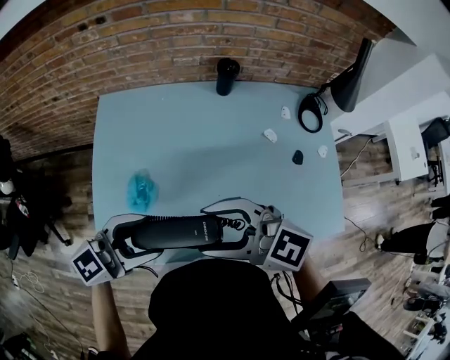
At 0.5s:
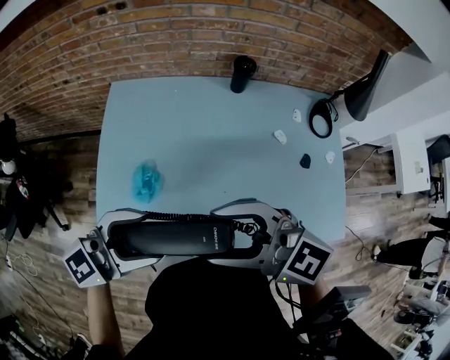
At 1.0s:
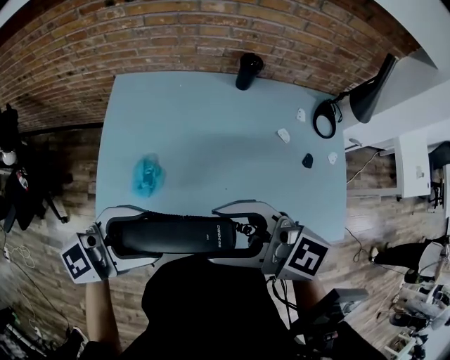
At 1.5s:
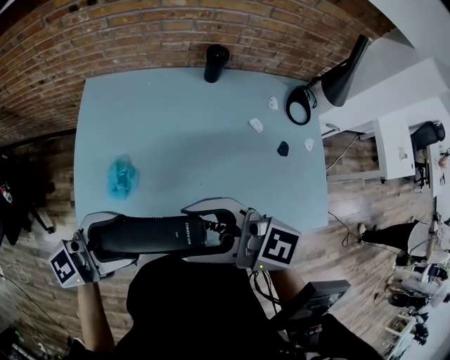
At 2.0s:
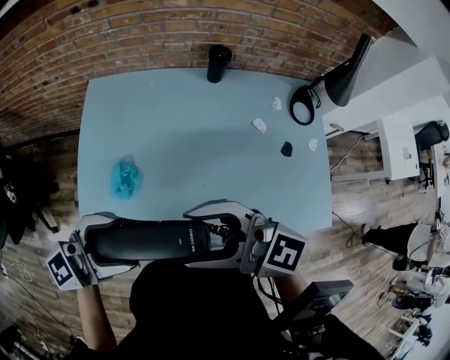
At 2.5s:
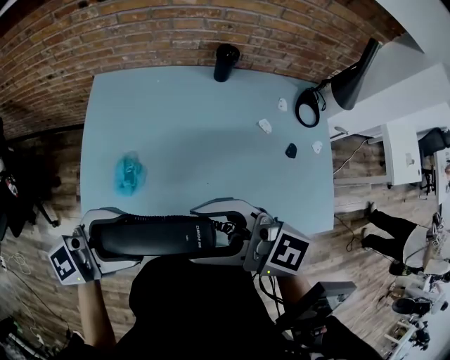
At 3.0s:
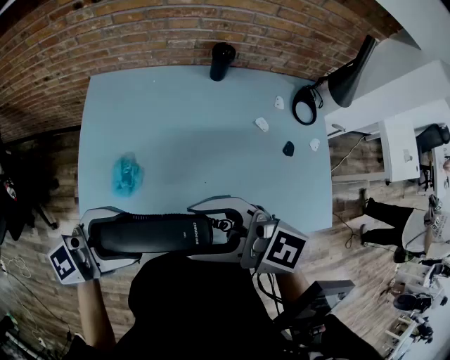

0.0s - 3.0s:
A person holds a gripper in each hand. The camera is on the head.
0.0s - 1.5s: The left gripper heads upward, covering approximately 5 cm.
1.5s - 3.0s: The grippers make only small movements.

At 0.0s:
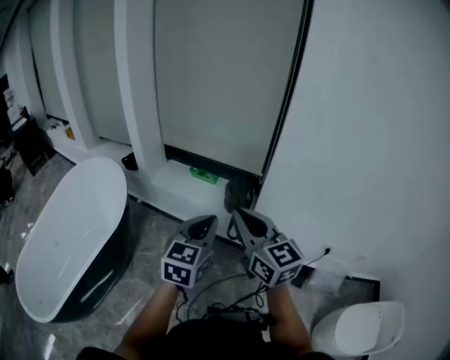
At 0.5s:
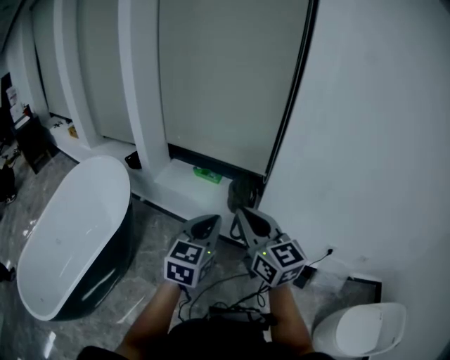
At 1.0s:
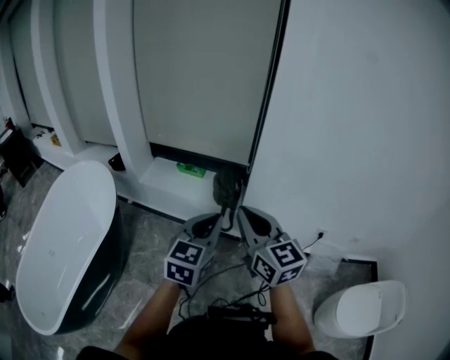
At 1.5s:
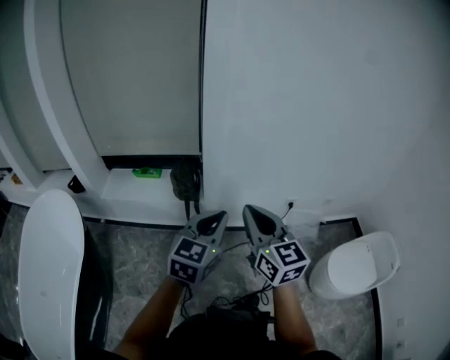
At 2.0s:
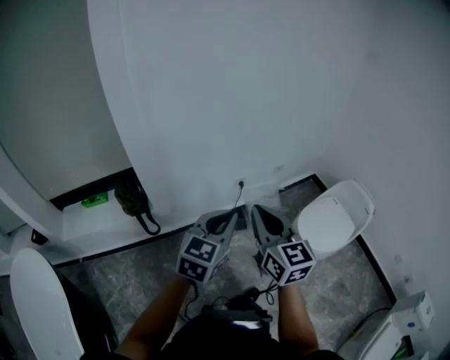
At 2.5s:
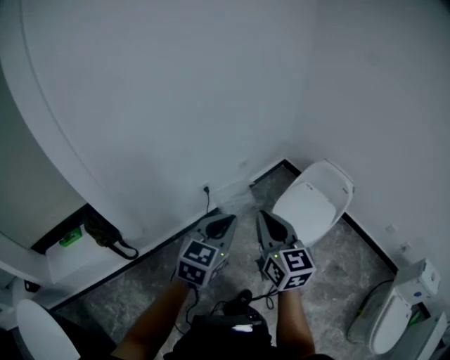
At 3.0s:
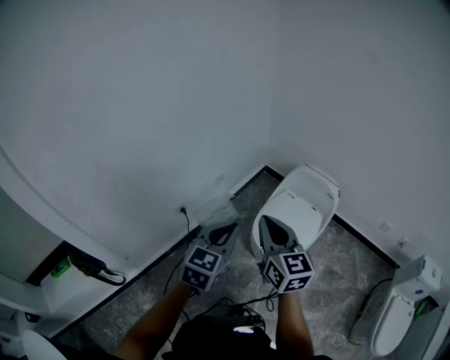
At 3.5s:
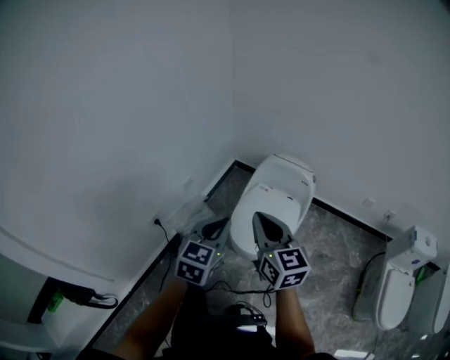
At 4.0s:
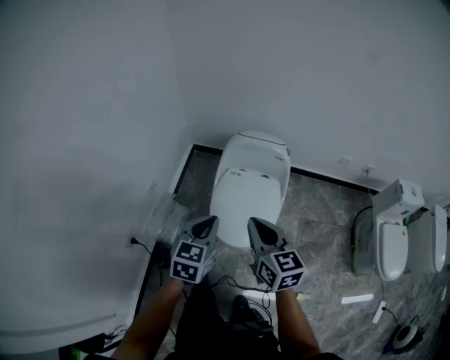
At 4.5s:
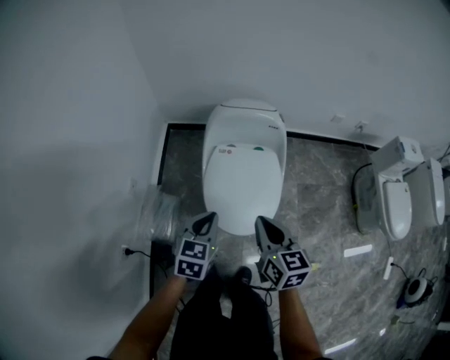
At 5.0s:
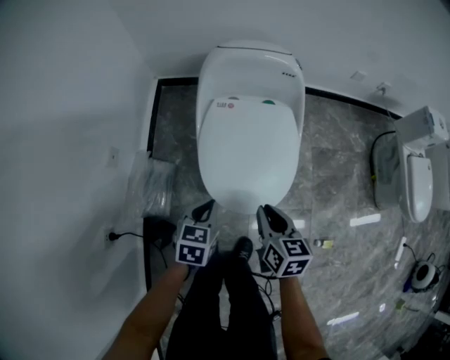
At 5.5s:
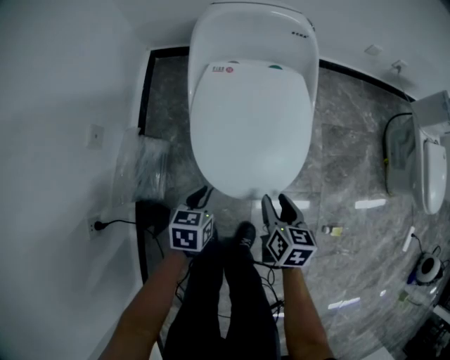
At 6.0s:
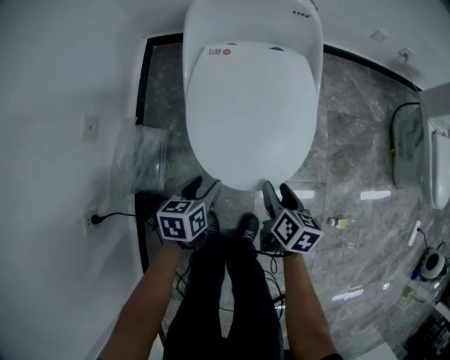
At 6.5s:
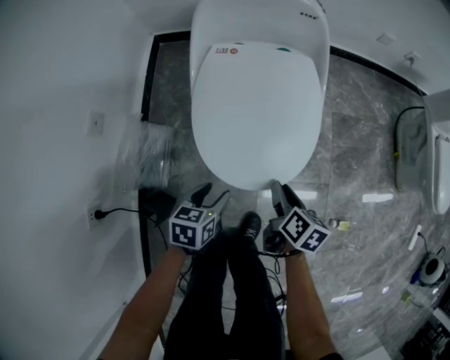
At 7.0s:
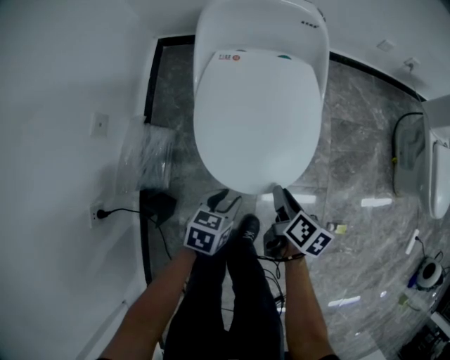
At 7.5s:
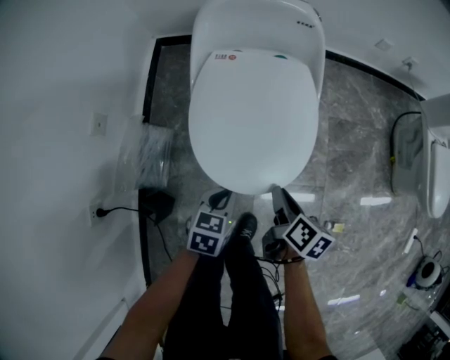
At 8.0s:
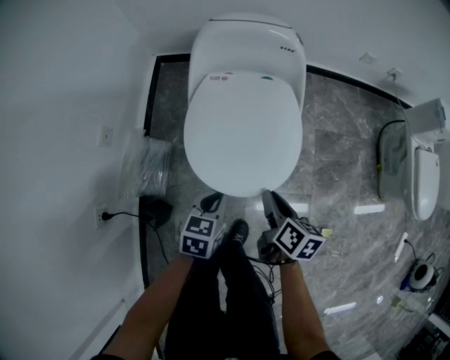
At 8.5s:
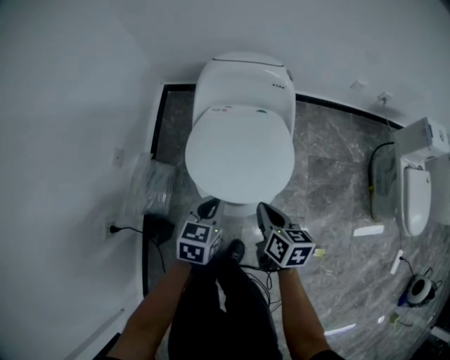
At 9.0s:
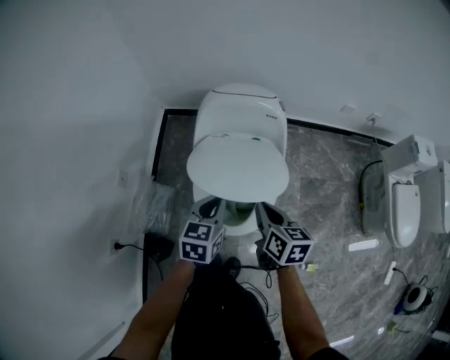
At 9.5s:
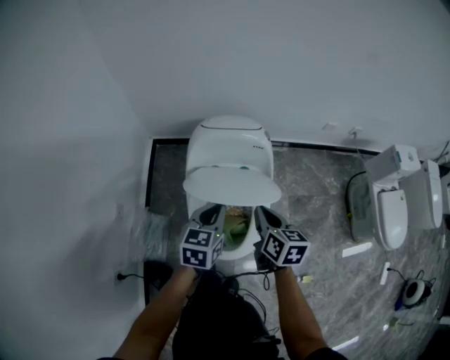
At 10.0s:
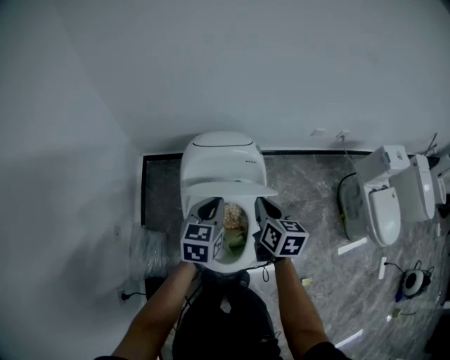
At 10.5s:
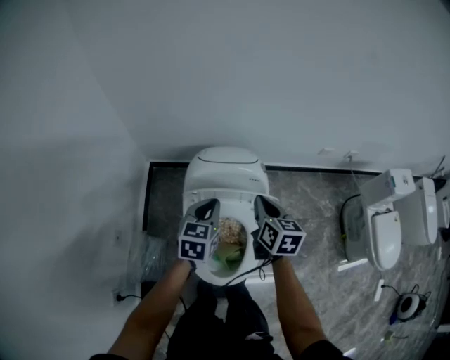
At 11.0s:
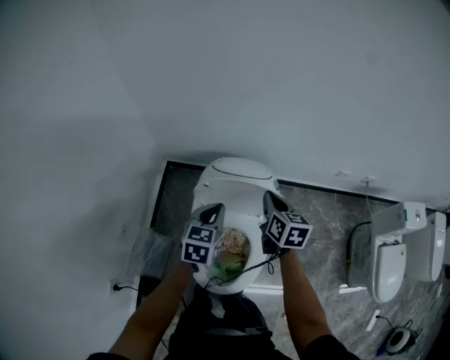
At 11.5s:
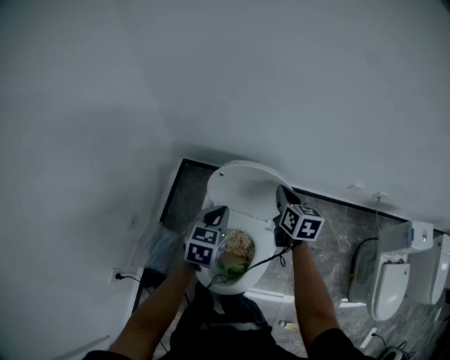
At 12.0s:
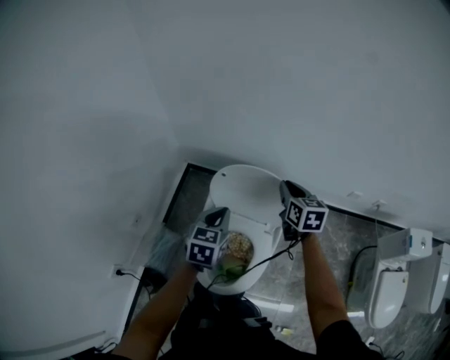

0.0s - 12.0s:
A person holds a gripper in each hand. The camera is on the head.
0.0s - 2.0s: The right gripper moves approximately 35 cm, and swivels approximately 50 degrees. Meanwhile the left gripper shifts by roughly 35 cm, and swivels about 50 degrees.
2.0s - 4.0s: Both grippers are carried approximately 40 cm. The left gripper swivels some 50 degrees; the right gripper changes its angle by roughly 50 degrees.
4.0s - 6.0s: The two grippers go roughly 40 cm downward. The right gripper rotates approximately 50 degrees, and opens its fingers. Meanwhile the left gripper changes its angle by approximately 40 degrees, and opens its fingers.
6.0s - 8.0s: The right gripper goes some 10 cm upward, and closes; the left gripper shifts about 15 cm upward and to the right, and closes up.
8.0s - 10.0s: The two grippers go about 30 cm forward and upward. The right gripper rotates approximately 30 degrees.
10.0s - 12.0s: The right gripper travels forward by approximately 20 cm, and swivels roughly 20 degrees. Meanwhile the left gripper ends up roughly 5 cm from where it was, and rotates some 20 degrees.

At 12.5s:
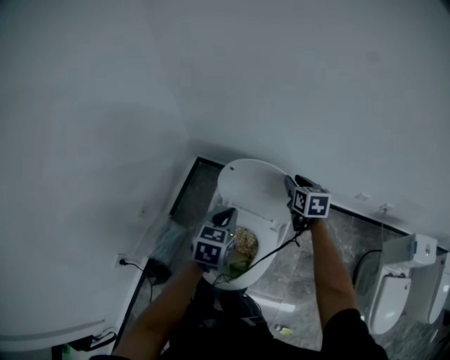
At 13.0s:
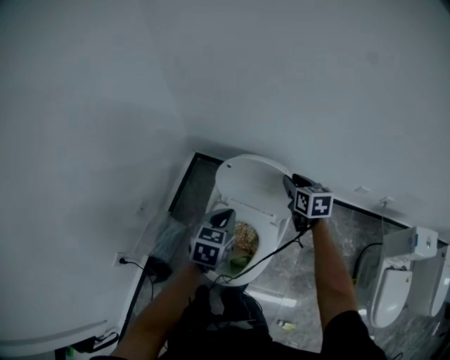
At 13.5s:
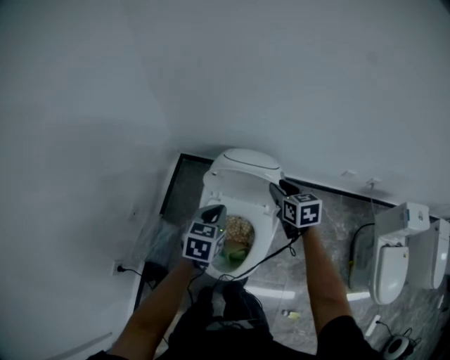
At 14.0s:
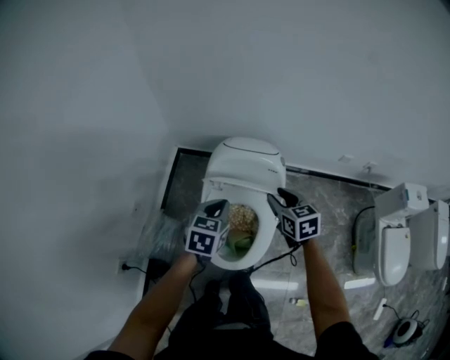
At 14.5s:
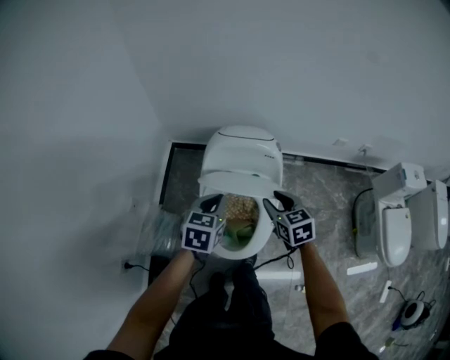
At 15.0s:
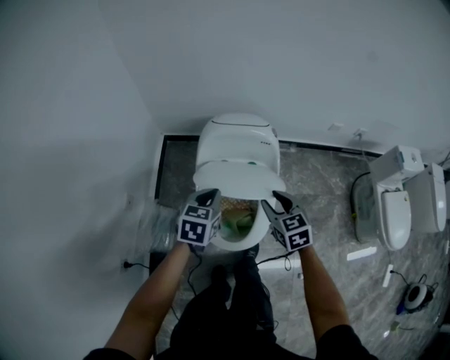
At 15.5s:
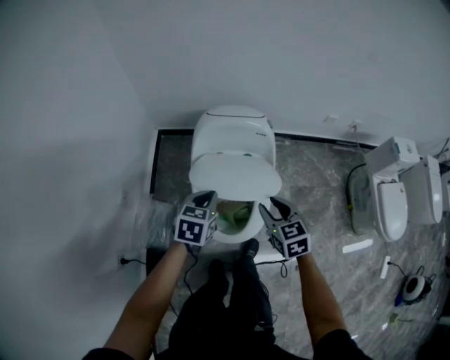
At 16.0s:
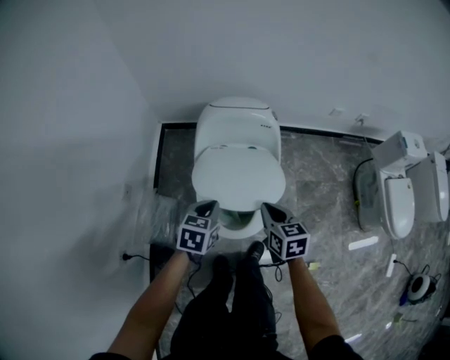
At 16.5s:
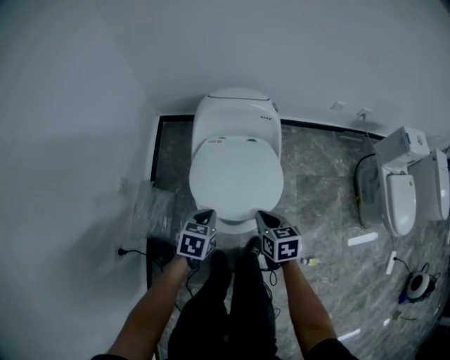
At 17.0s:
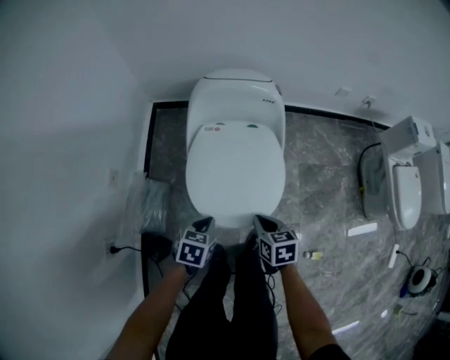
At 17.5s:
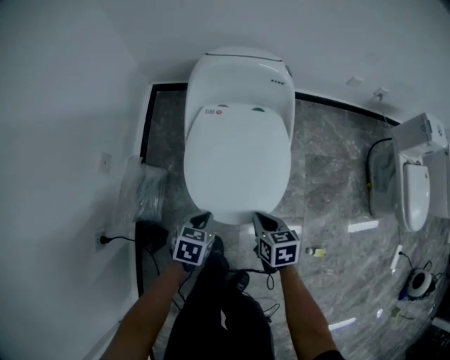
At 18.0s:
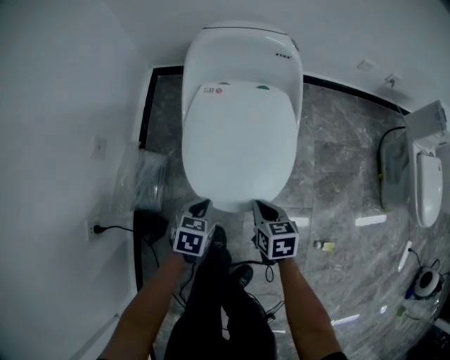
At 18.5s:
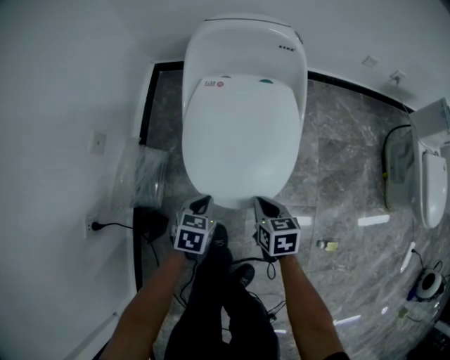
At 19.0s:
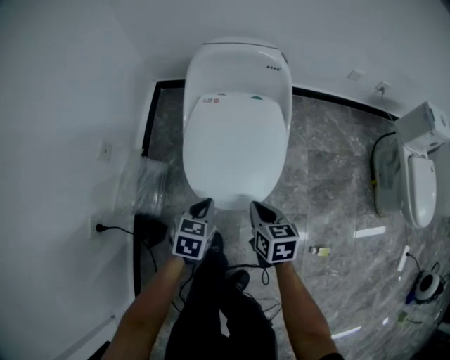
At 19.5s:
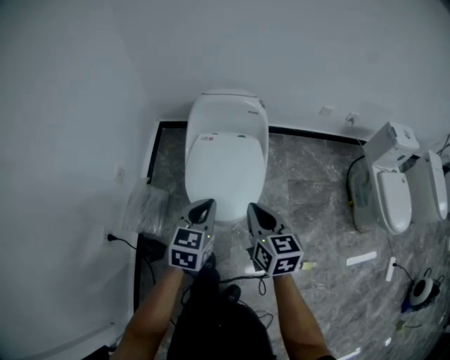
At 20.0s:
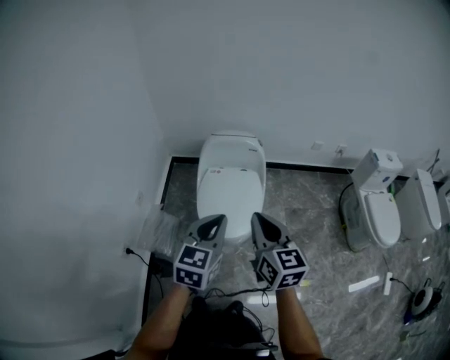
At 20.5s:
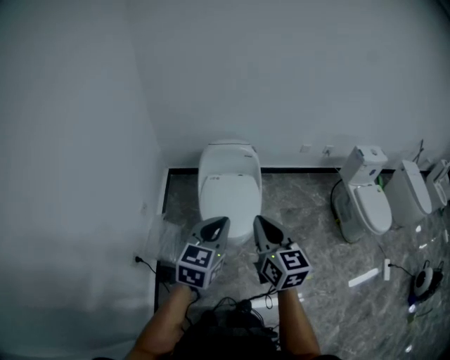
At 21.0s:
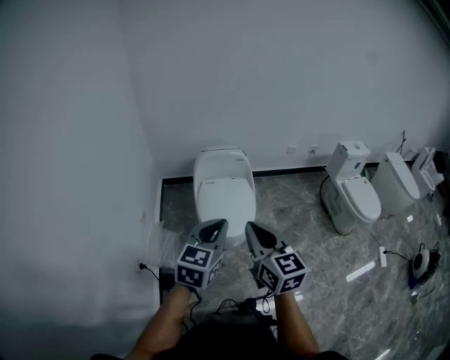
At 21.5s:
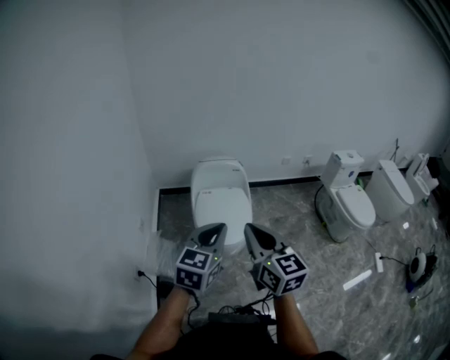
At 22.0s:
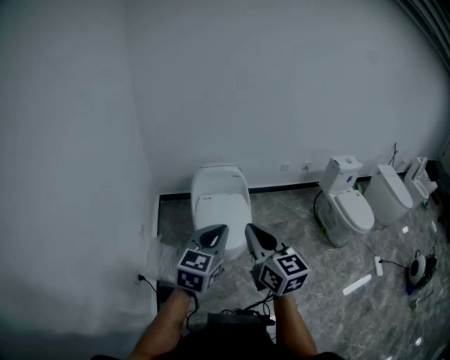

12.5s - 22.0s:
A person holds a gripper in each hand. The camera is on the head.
12.5s - 14.5s: The right gripper shifts about 25 cm backward. The left gripper moves backward, approximately 10 cm.
14.5s - 16.5s: The right gripper goes some 20 cm backward and downward, changes its angle by roughly 20 degrees, and closes. The left gripper is displaced downward and backward by about 20 cm.
16.5s - 18.0s: Both grippers move downward, approximately 15 cm.
18.0s - 20.0s: Both grippers travel together upward, approximately 40 cm. The left gripper angles its fingers upward, by some 40 degrees; the right gripper tilts its fingers roughly 40 degrees upward.
20.0s - 22.0s: The left gripper is displaced backward and upward by some 15 cm. The right gripper travels backward, upward and to the left by roughly 20 cm.

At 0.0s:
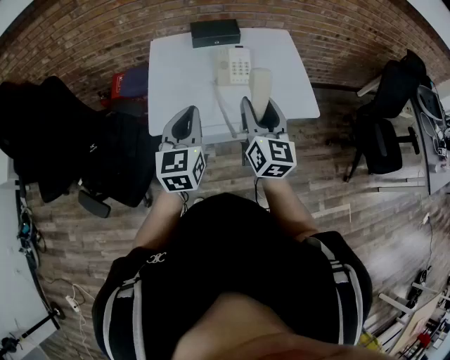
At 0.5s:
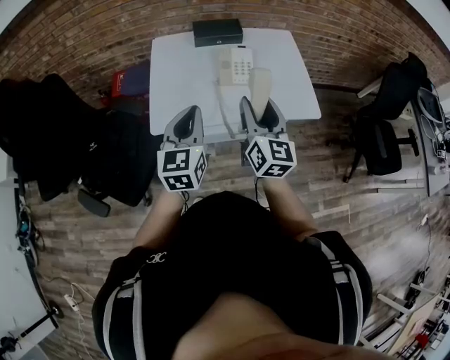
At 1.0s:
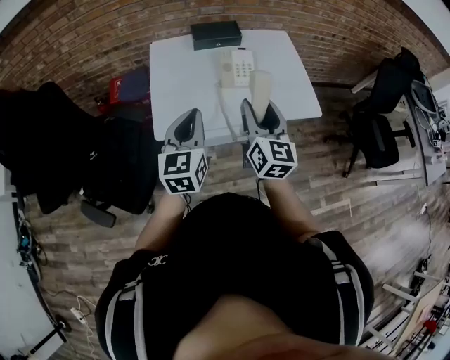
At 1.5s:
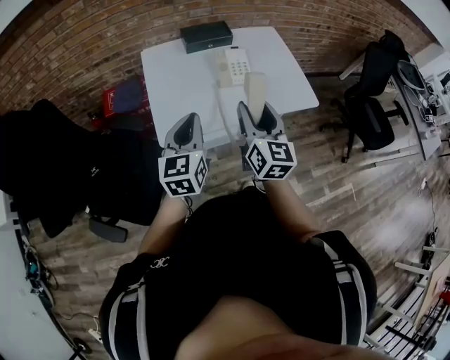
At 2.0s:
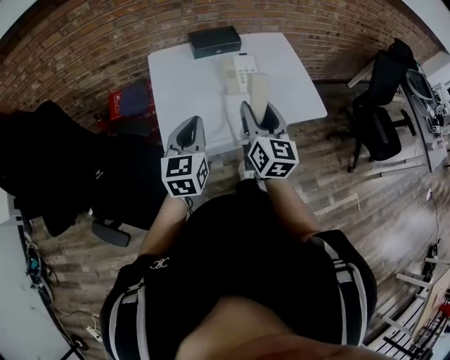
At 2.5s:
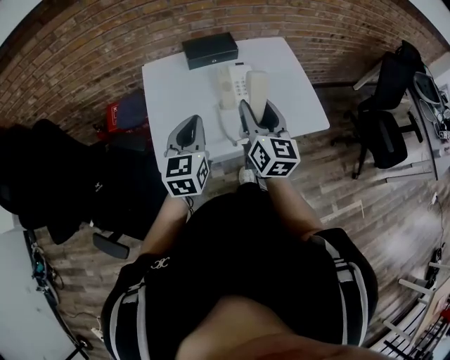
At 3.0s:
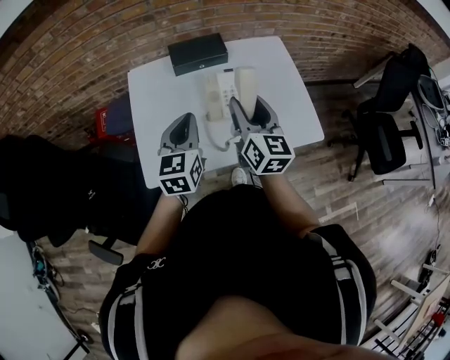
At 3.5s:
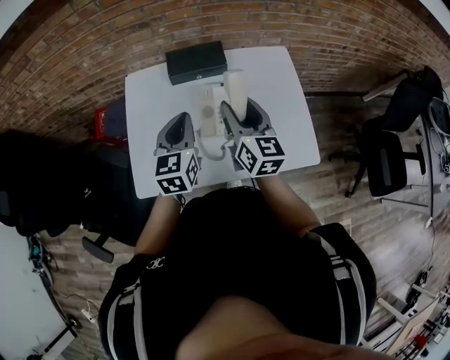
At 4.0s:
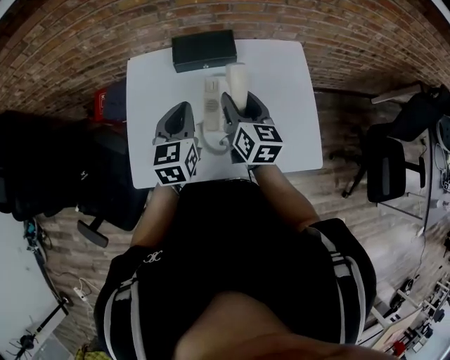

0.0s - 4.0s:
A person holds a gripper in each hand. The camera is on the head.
0.0s - 2.0s: Both grippers travel together to the left, some 10 cm.
2.0s - 4.0s: The right gripper is displaced forward by approximately 30 cm, and rotates some 20 degrees; the left gripper heads forward and to the right, covering approximately 30 cm.
